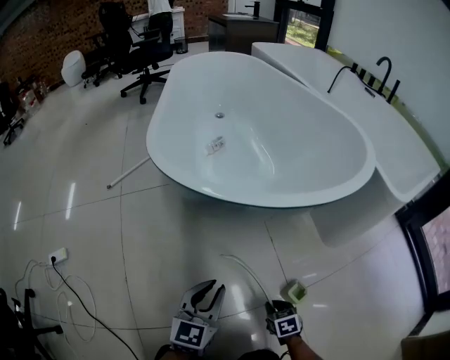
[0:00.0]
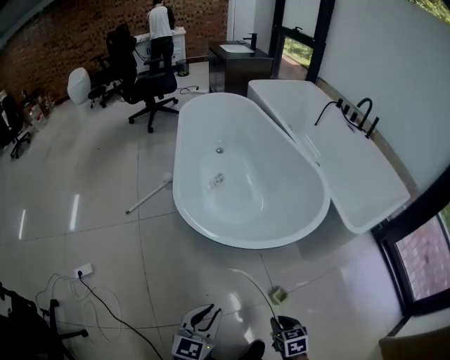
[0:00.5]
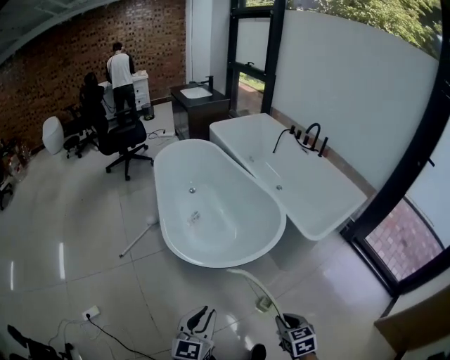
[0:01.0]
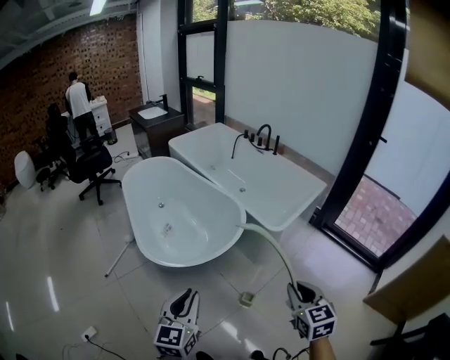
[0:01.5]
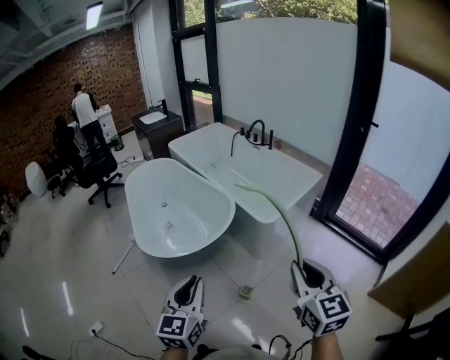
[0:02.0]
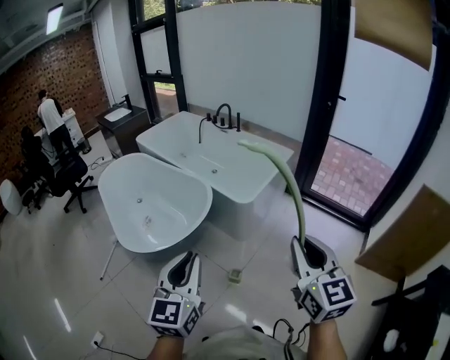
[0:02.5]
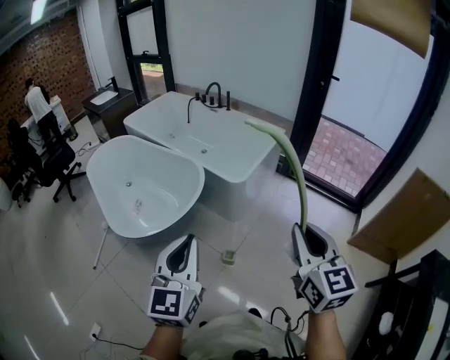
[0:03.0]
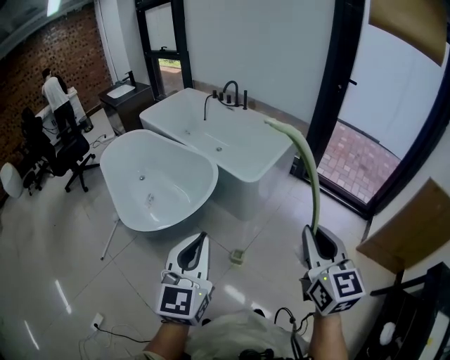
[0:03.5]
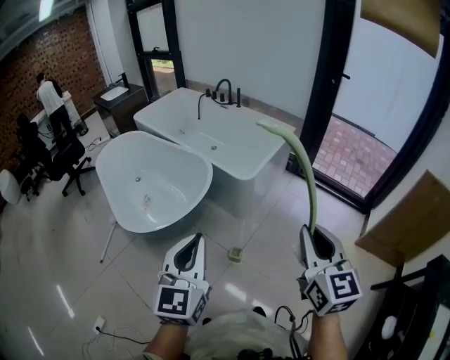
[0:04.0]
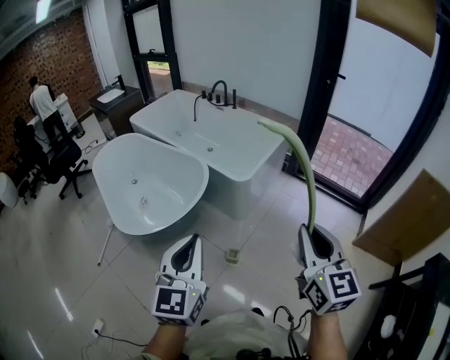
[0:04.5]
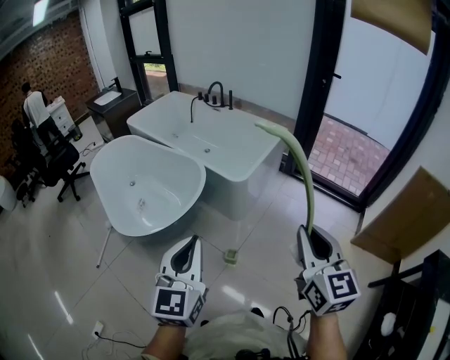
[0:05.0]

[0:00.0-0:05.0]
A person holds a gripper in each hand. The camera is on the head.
0:00.0 to 0:02.5: The two grippers travel together, approximately 50 cm. Both grippers move upward, roughly 1 m. The right gripper tips its fingers upward by about 60 degrees. Meanwhile the left gripper turns by approximately 30 degrees.
0:02.5 to 0:05.0: The grippers make only small movements.

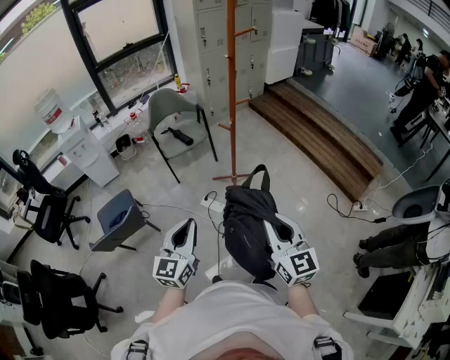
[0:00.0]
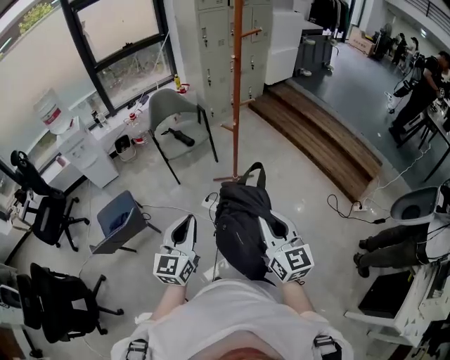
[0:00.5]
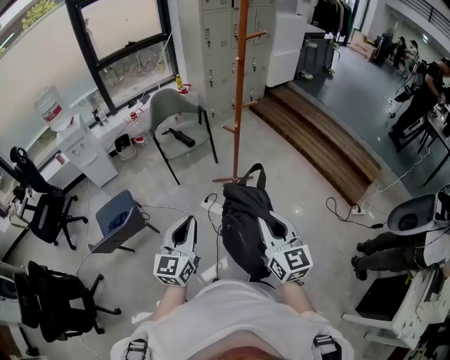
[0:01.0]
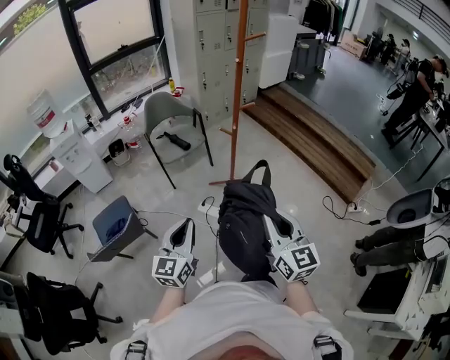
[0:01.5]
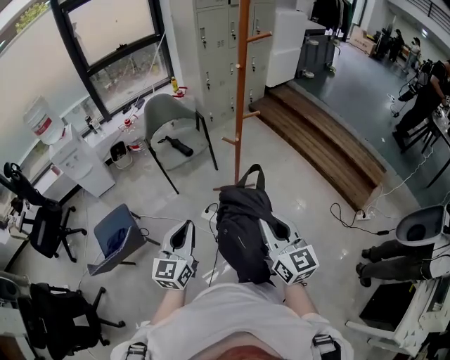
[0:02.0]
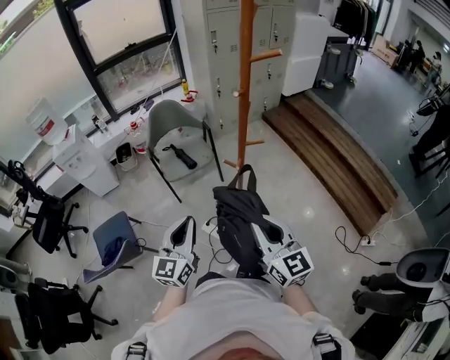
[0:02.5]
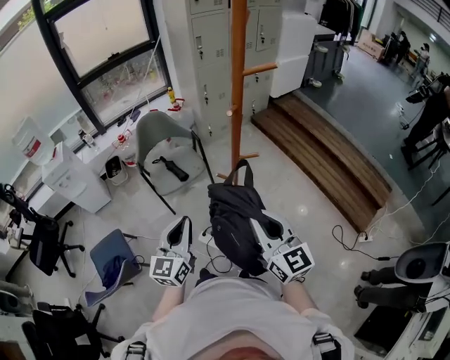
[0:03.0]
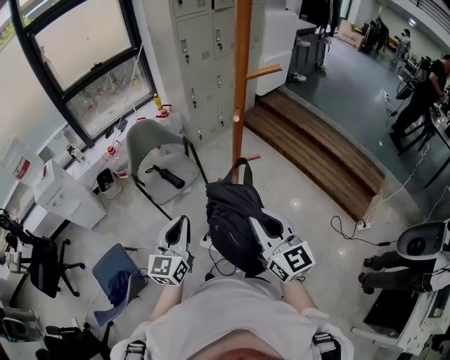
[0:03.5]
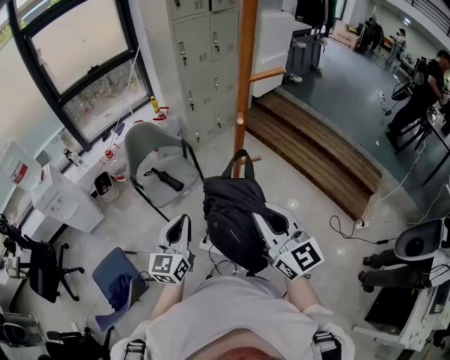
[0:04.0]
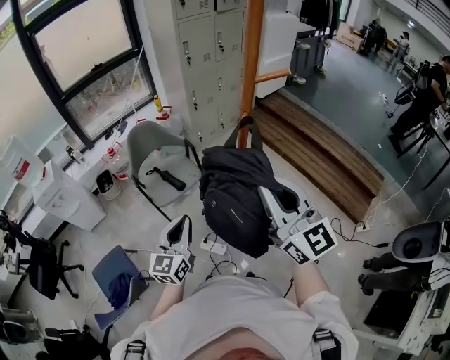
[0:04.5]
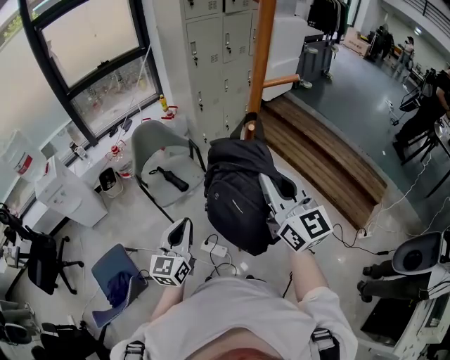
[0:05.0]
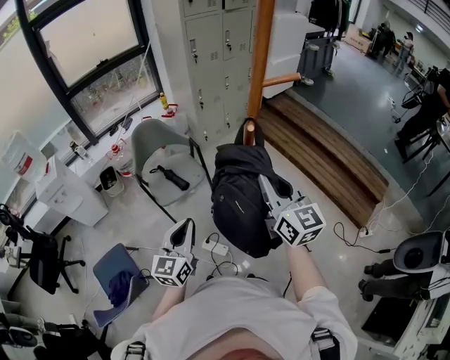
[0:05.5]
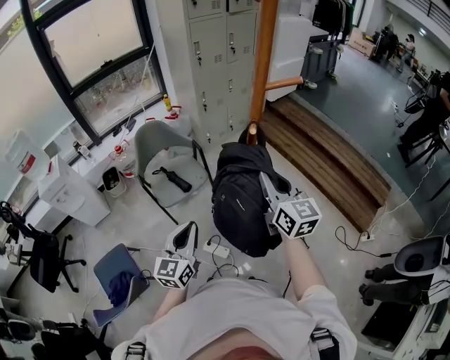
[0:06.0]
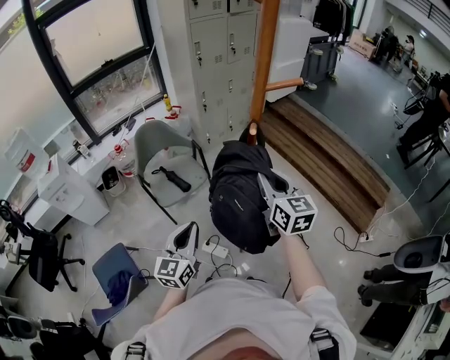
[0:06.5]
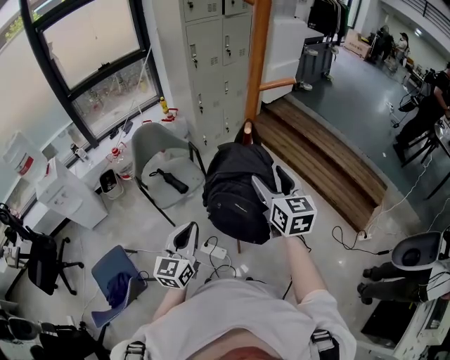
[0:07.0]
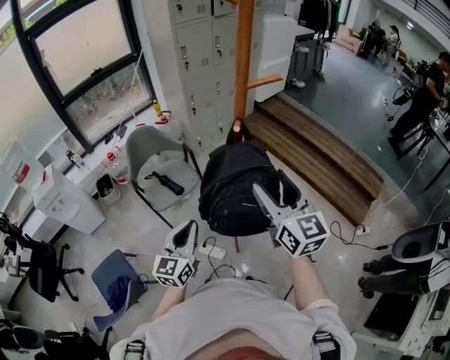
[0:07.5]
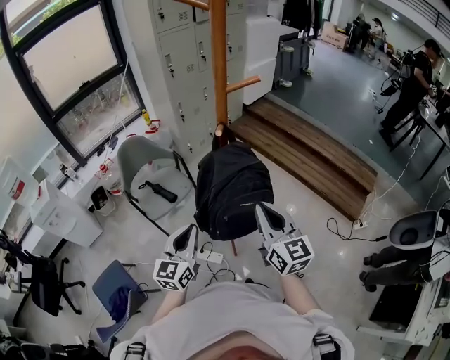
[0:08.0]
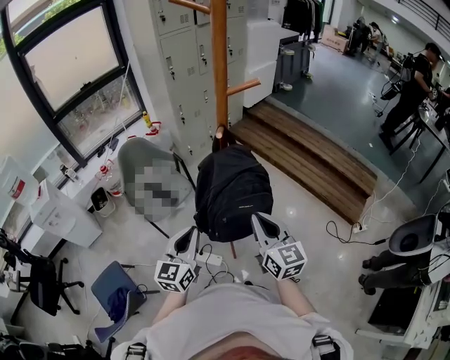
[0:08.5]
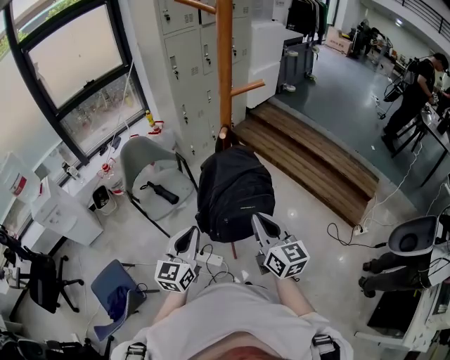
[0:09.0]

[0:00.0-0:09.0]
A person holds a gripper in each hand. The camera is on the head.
0:00.0 to 0:02.0: Both grippers move forward, approximately 15 cm.
0:02.0 to 0:04.5: The left gripper heads forward, covering some 30 cm. Meanwhile the right gripper heads forward and upward, covering about 30 cm.
0:04.5 to 0:07.0: The right gripper travels downward and forward by approximately 15 cm, turns by some 30 degrees, and opens up.
0:07.0 to 0:09.0: The right gripper moves backward, approximately 10 cm, and closes up.

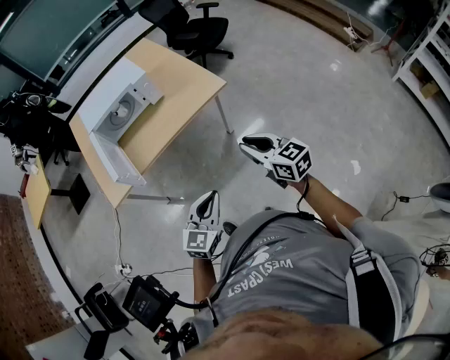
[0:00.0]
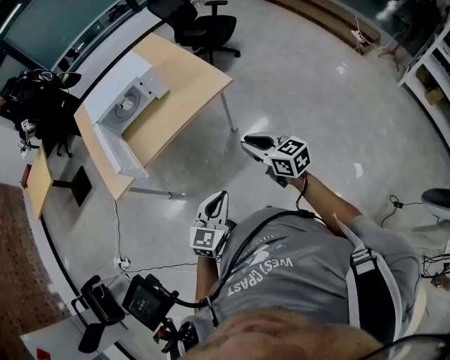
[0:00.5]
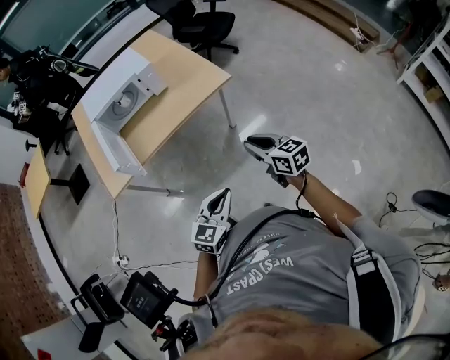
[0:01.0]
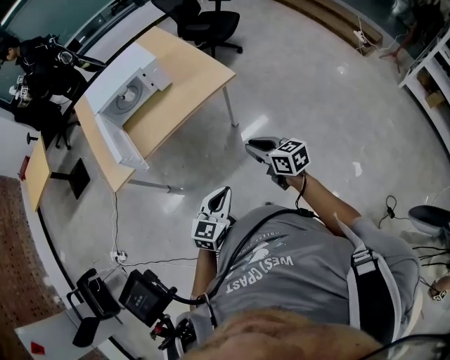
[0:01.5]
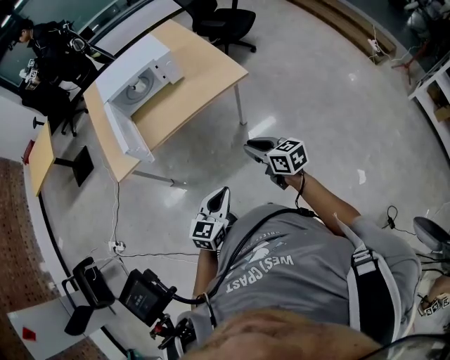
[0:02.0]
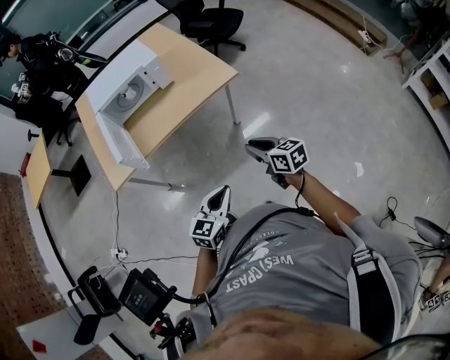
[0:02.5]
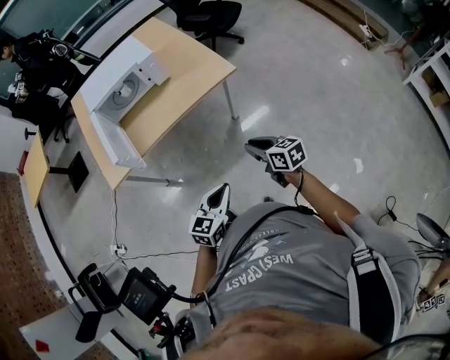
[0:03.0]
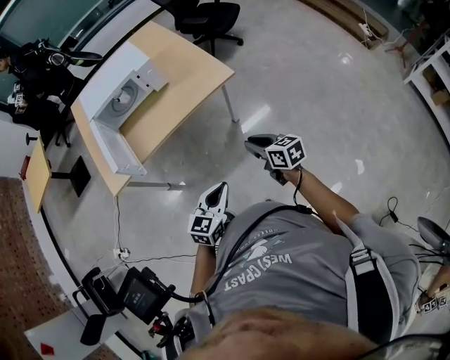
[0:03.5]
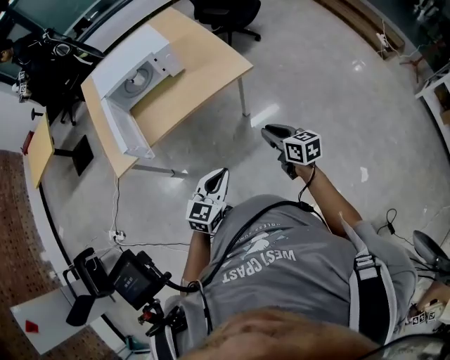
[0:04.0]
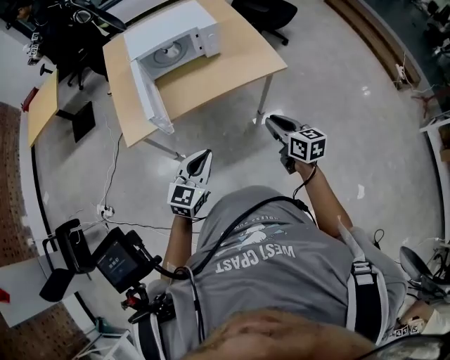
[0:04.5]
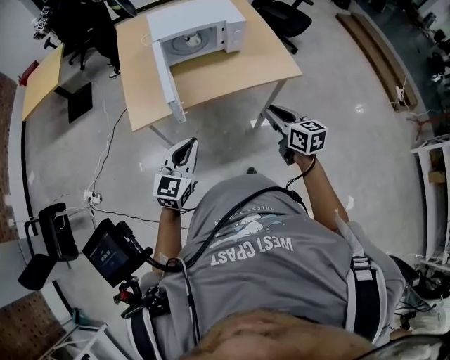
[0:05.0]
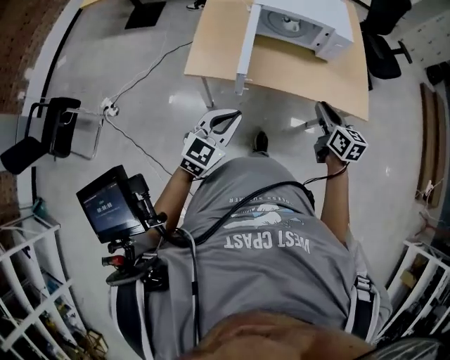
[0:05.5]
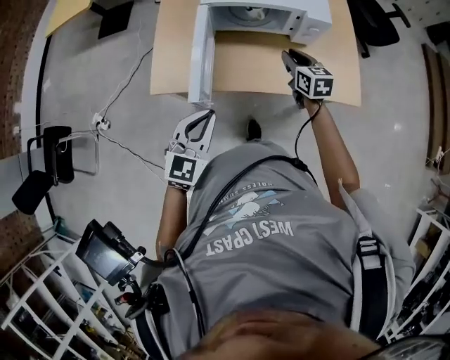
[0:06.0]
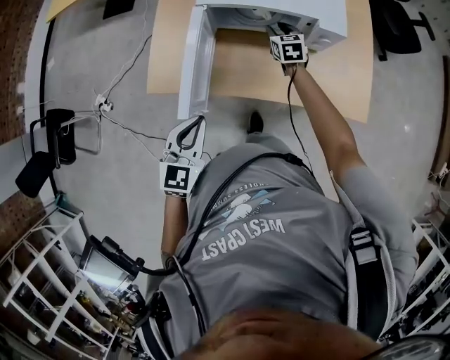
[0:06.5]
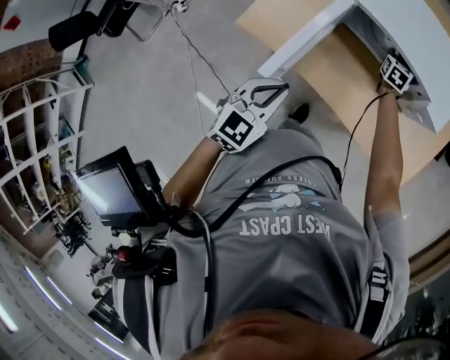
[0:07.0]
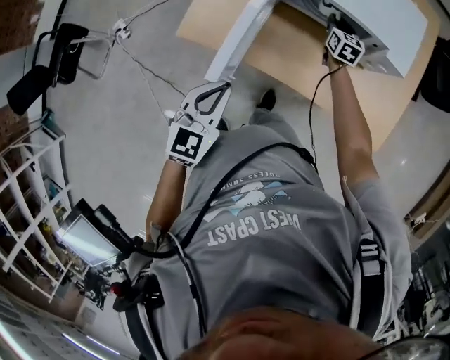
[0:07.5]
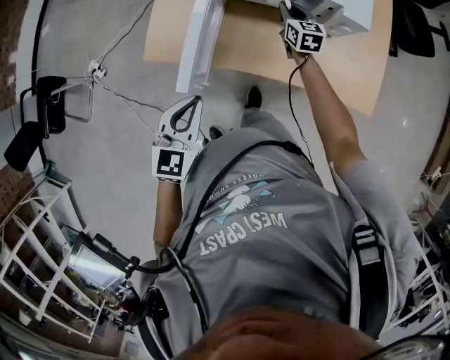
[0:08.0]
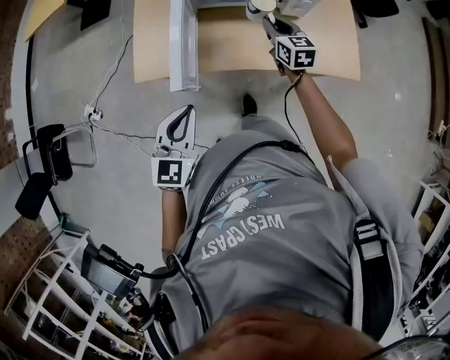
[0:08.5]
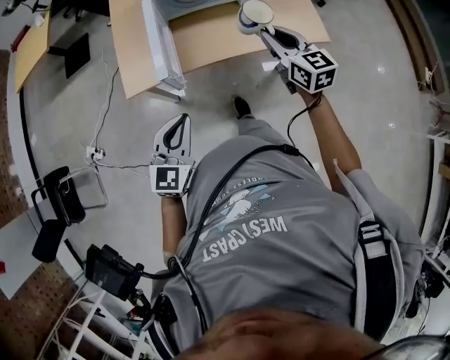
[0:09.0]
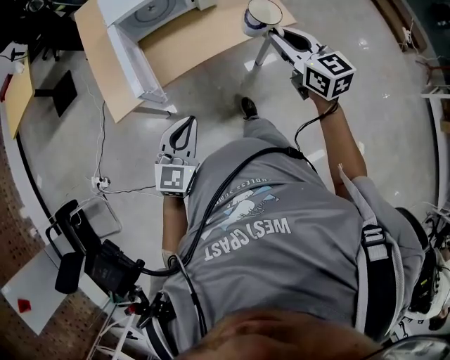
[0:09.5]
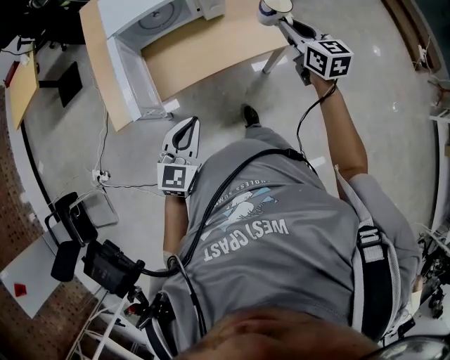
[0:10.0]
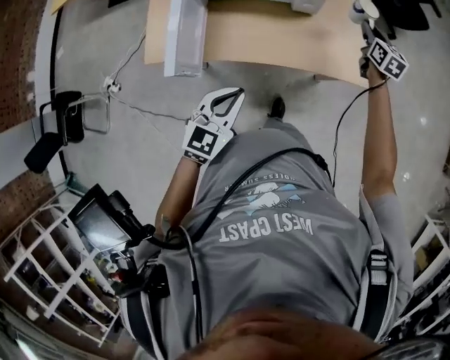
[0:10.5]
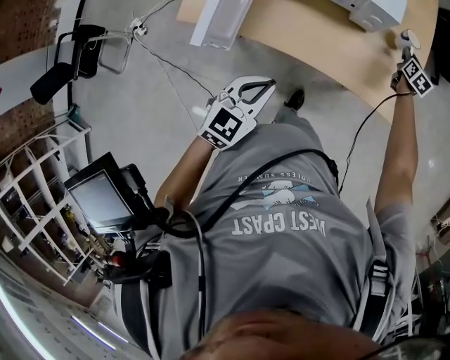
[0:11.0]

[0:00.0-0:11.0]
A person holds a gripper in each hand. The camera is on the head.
0:00.0 to 0:02.0: The right gripper heads downward and to the left, covering roughly 10 cm; the left gripper ends up roughly 5 cm from where it was.
0:02.0 to 0:03.5: The left gripper is displaced forward by roughly 5 cm; the right gripper travels to the right and forward by roughly 10 cm.
0:03.5 to 0:05.5: Both grippers travel together to the left and forward, roughly 35 cm. The left gripper swivels about 30 degrees.
0:05.5 to 0:07.5: The right gripper travels forward and downward by roughly 50 cm; the left gripper travels forward by about 20 cm, and turns by roughly 30 degrees.
0:07.5 to 0:09.0: The right gripper goes some 50 cm backward and upward, and changes its angle by some 20 degrees; the left gripper goes about 15 cm backward, and changes its angle by roughly 30 degrees.
0:09.0 to 0:11.0: The right gripper shifts about 60 cm forward, downward and to the right, and turns by about 30 degrees. Meanwhile the left gripper heads forward and to the right, covering about 30 cm.

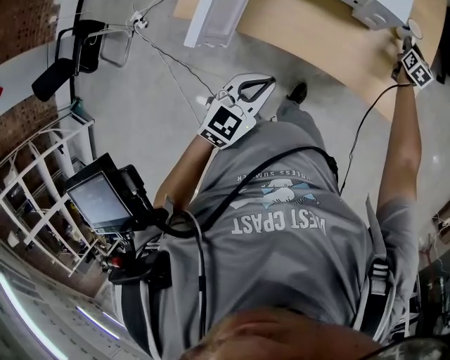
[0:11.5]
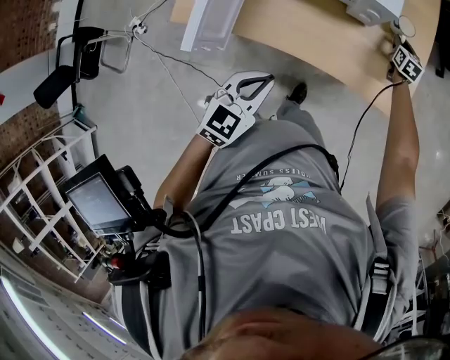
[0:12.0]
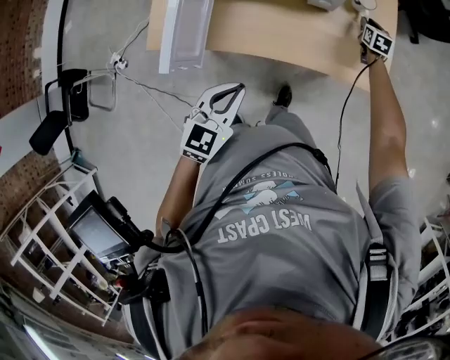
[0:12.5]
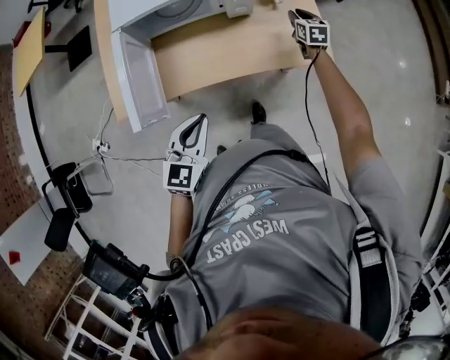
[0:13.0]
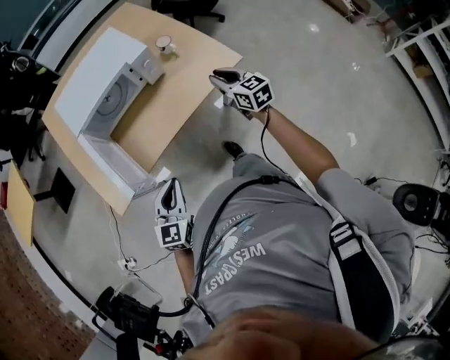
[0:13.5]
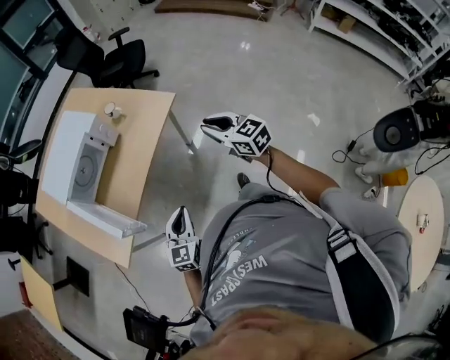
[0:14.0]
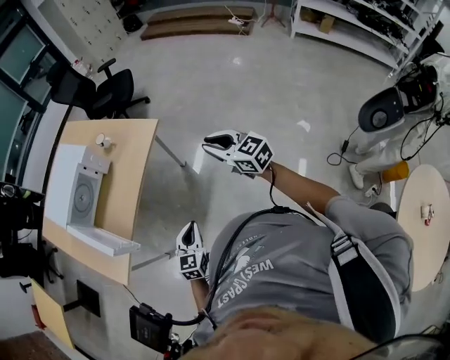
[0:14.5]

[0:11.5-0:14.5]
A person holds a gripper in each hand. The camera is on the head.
0:11.5 to 0:13.0: The right gripper is displaced backward by some 10 cm.
0:13.0 to 0:14.5: The right gripper changes place by roughly 70 cm, and swivels about 30 degrees, while the left gripper moves about 35 cm, and changes its angle by roughly 40 degrees.
